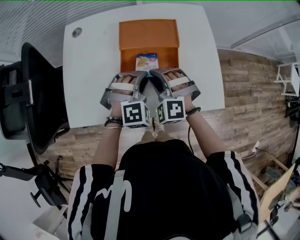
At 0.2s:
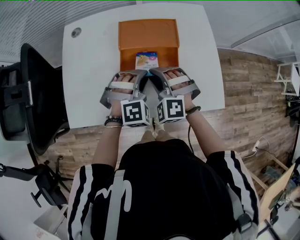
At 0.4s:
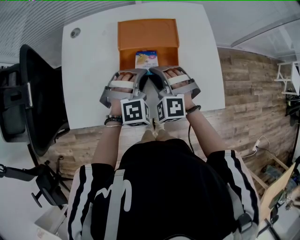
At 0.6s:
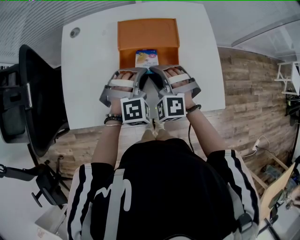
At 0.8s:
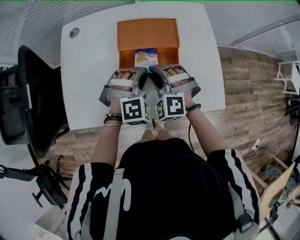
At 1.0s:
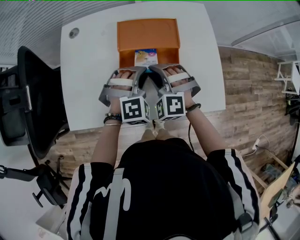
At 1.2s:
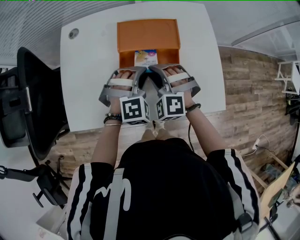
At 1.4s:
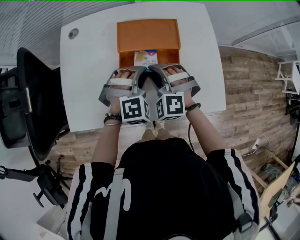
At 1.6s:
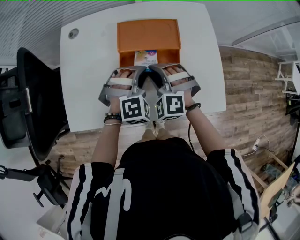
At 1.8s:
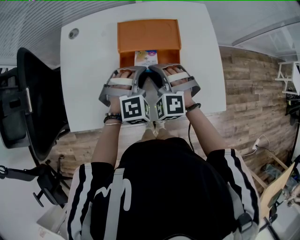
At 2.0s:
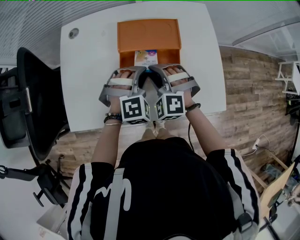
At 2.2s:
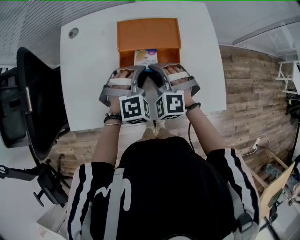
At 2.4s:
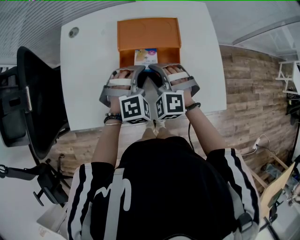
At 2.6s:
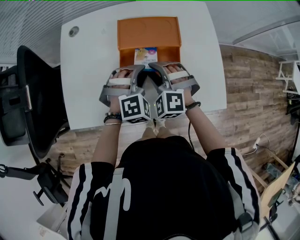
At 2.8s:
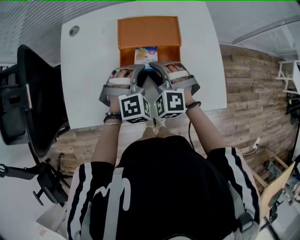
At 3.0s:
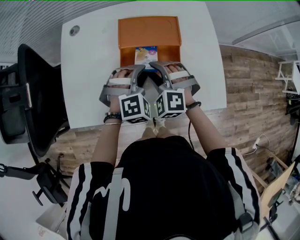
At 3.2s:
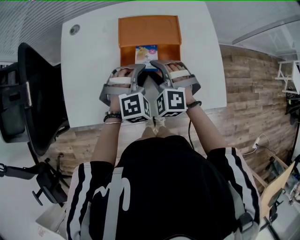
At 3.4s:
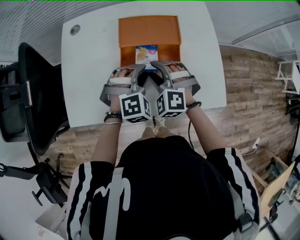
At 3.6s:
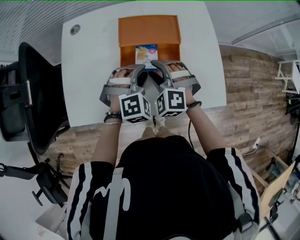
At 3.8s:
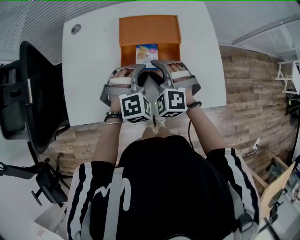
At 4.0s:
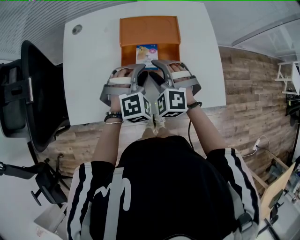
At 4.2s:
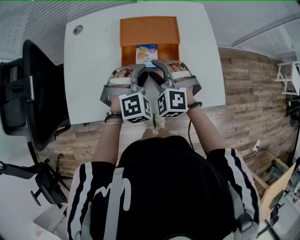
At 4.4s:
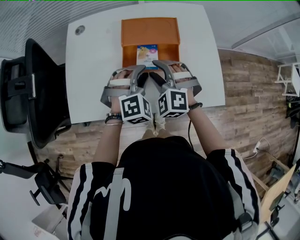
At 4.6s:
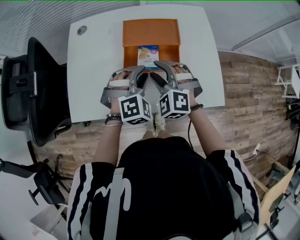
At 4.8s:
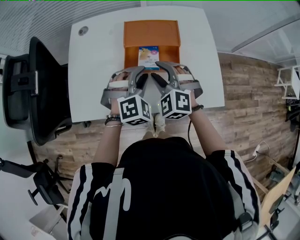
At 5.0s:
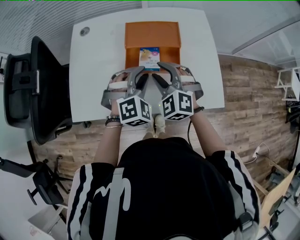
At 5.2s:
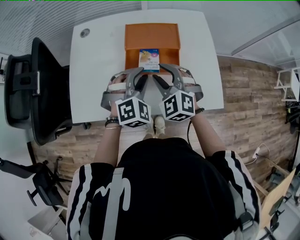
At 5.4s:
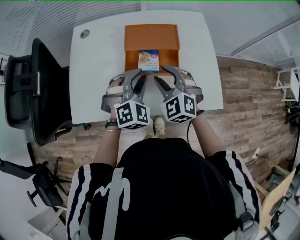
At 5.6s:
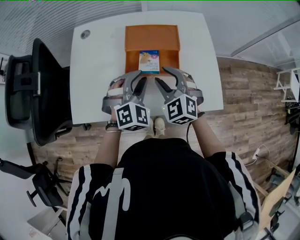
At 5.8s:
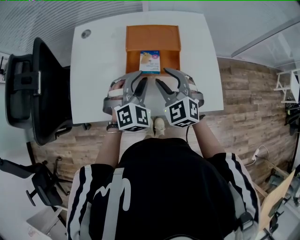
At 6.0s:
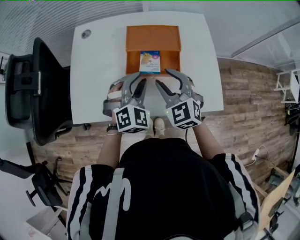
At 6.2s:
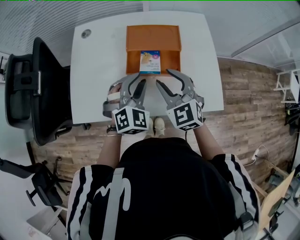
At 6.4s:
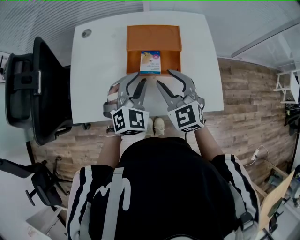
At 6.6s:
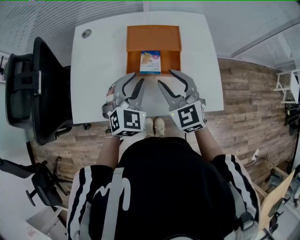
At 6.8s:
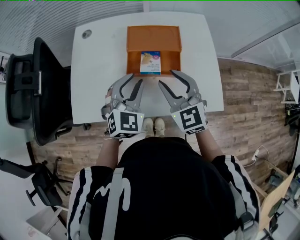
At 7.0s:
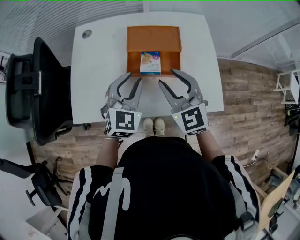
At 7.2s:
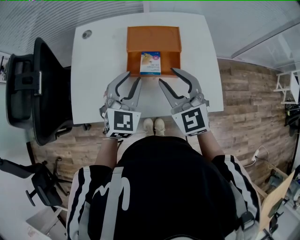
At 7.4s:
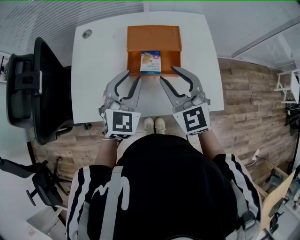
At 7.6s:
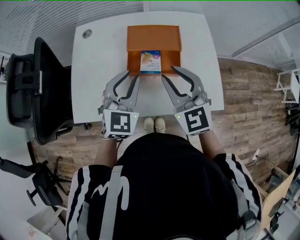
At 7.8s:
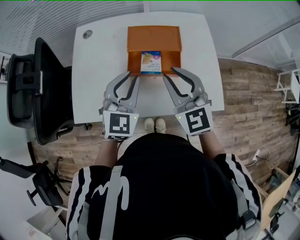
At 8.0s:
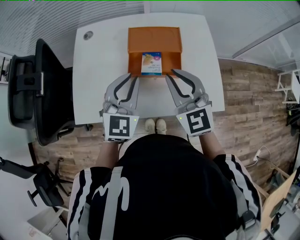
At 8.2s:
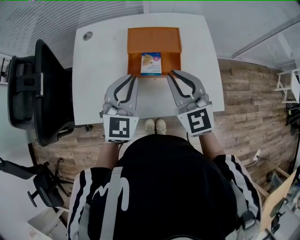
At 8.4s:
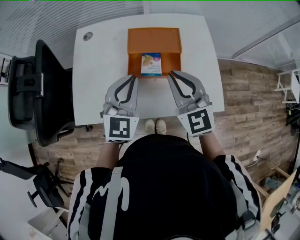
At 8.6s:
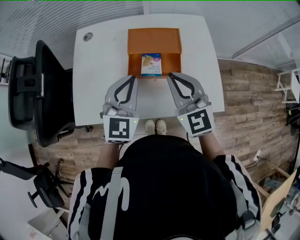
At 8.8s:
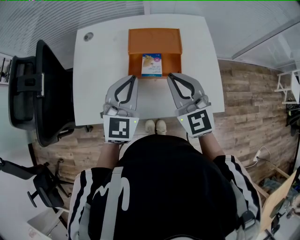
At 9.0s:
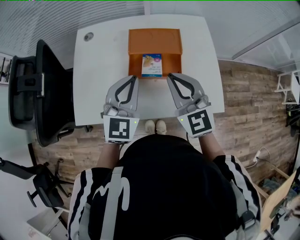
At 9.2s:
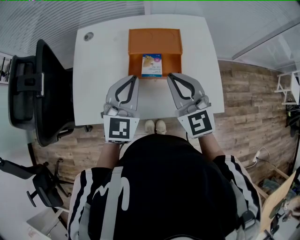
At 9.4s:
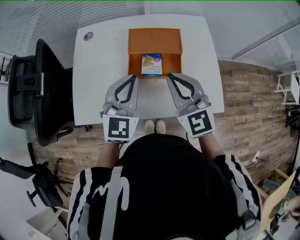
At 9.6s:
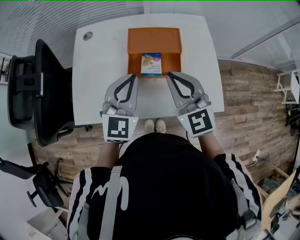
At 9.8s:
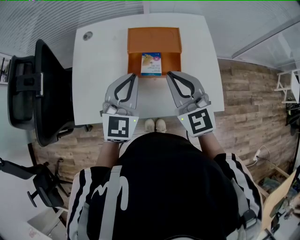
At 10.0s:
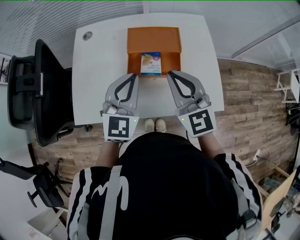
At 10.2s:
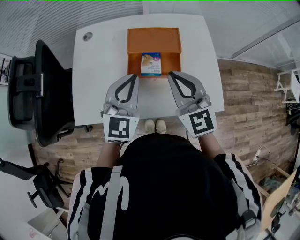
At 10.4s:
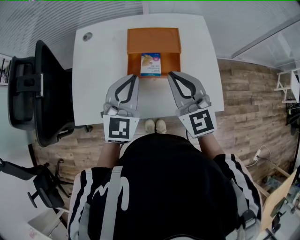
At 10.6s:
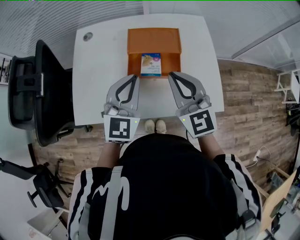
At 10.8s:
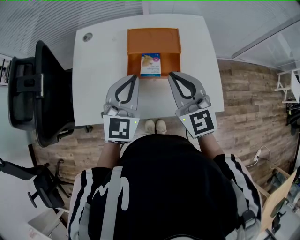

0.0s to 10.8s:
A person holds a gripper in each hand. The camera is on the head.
0.0s to 4.6s: The grippers make only small movements.
4.6s to 6.2s: The left gripper rotates about 20 degrees. Meanwhile the right gripper travels upward by roughly 5 cm, and swivels about 30 degrees.
6.2s to 7.8s: Both grippers travel together upward, about 10 cm. The right gripper closes its fingers. The left gripper swivels some 30 degrees.
7.8s to 9.2s: The right gripper closes up.
9.2s to 10.8s: The grippers move only a little.

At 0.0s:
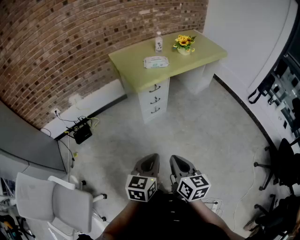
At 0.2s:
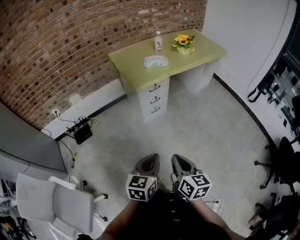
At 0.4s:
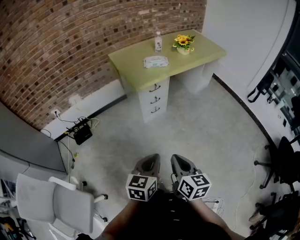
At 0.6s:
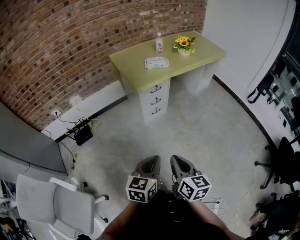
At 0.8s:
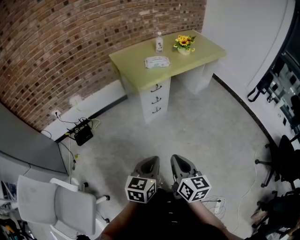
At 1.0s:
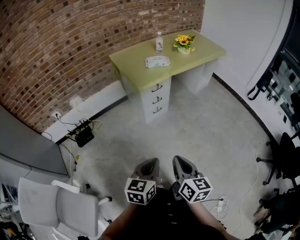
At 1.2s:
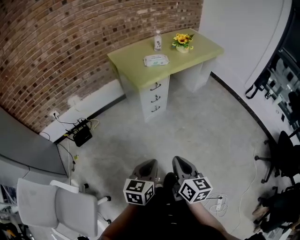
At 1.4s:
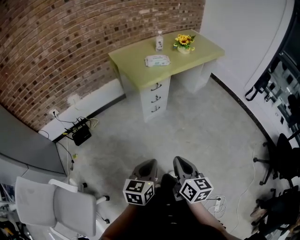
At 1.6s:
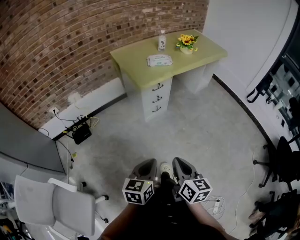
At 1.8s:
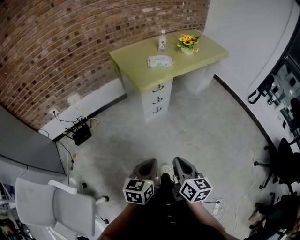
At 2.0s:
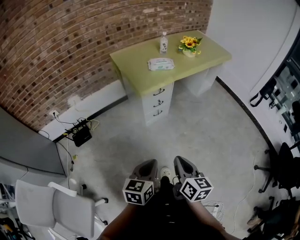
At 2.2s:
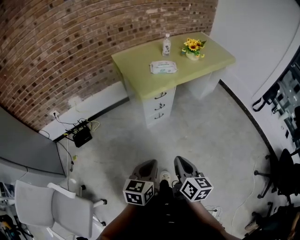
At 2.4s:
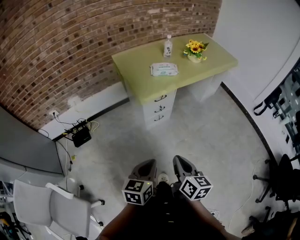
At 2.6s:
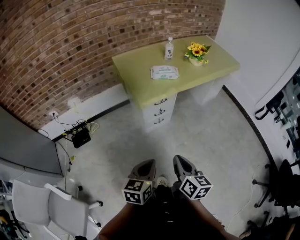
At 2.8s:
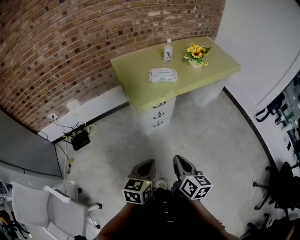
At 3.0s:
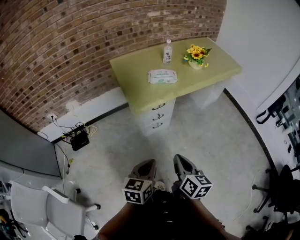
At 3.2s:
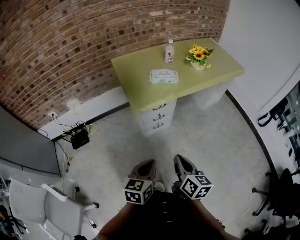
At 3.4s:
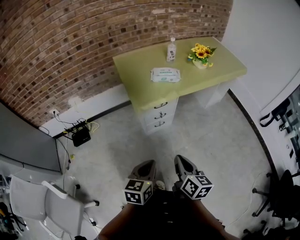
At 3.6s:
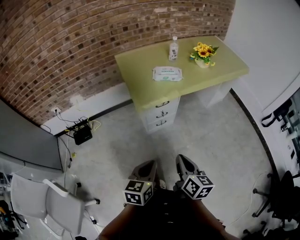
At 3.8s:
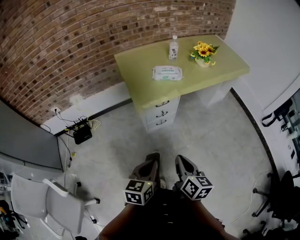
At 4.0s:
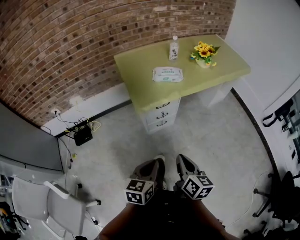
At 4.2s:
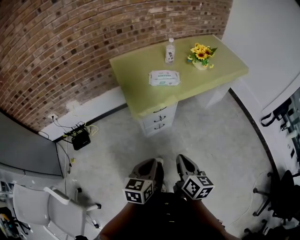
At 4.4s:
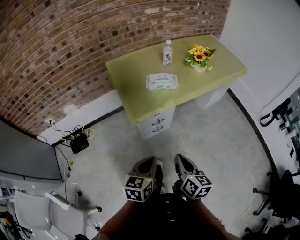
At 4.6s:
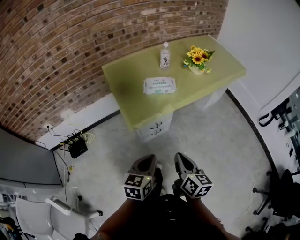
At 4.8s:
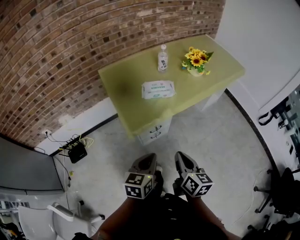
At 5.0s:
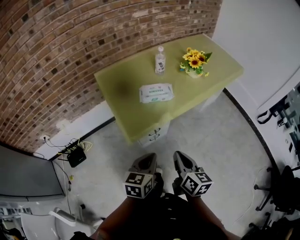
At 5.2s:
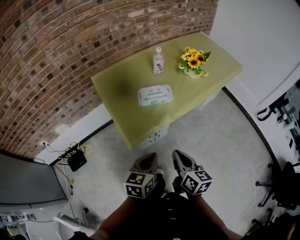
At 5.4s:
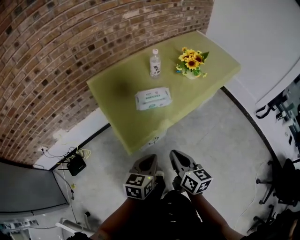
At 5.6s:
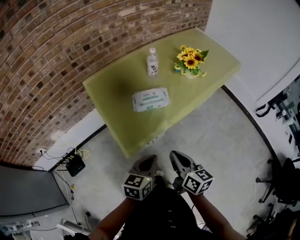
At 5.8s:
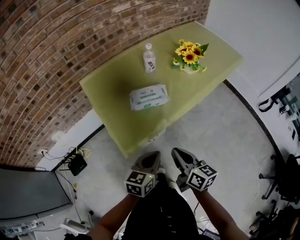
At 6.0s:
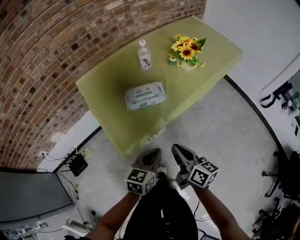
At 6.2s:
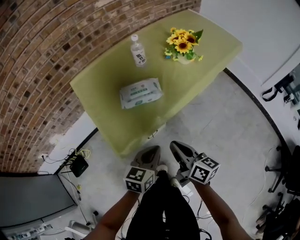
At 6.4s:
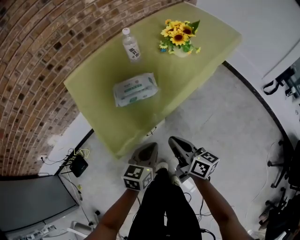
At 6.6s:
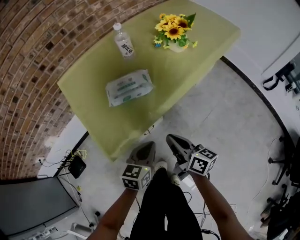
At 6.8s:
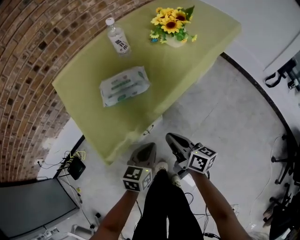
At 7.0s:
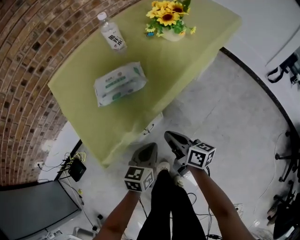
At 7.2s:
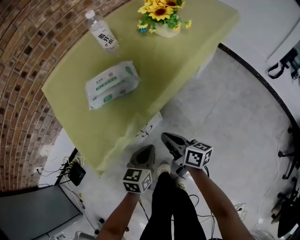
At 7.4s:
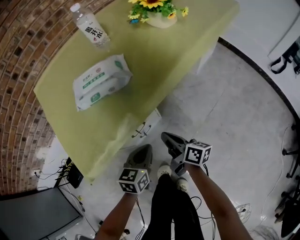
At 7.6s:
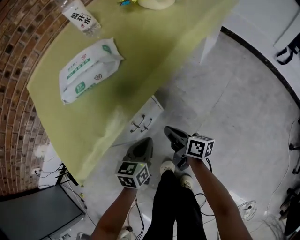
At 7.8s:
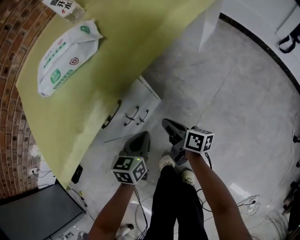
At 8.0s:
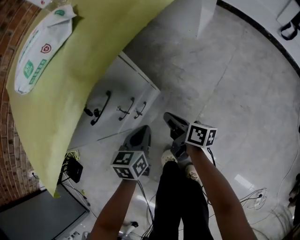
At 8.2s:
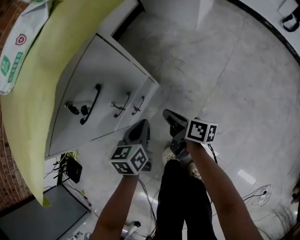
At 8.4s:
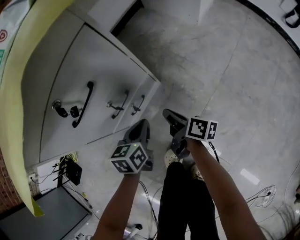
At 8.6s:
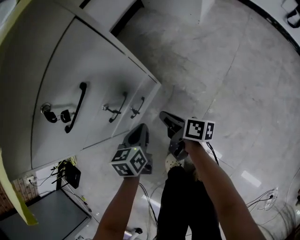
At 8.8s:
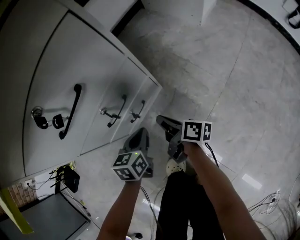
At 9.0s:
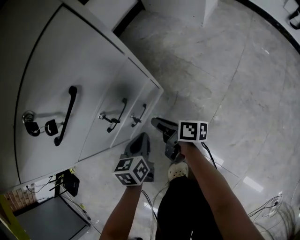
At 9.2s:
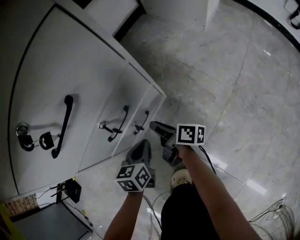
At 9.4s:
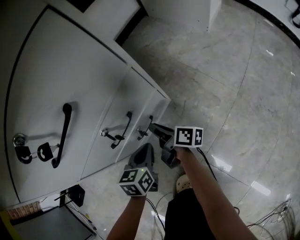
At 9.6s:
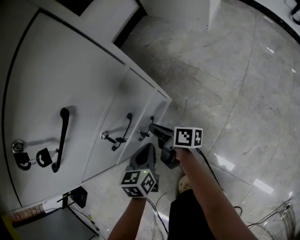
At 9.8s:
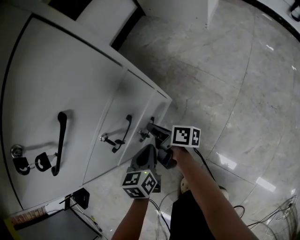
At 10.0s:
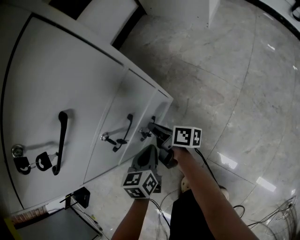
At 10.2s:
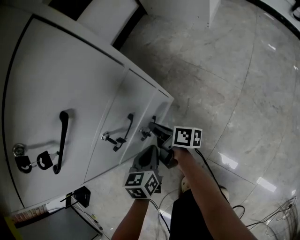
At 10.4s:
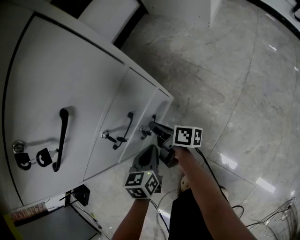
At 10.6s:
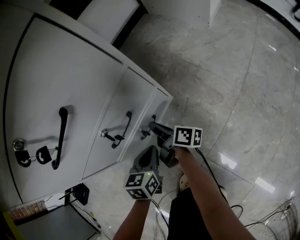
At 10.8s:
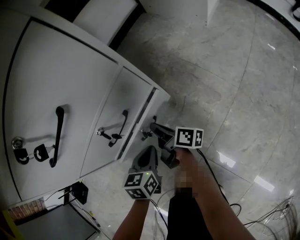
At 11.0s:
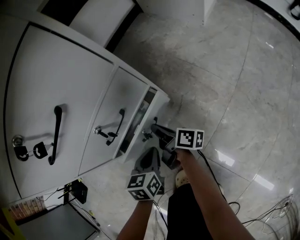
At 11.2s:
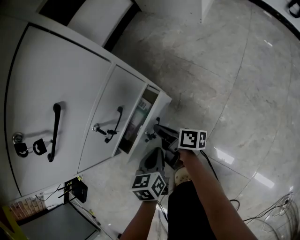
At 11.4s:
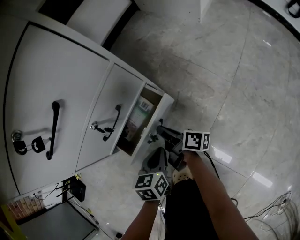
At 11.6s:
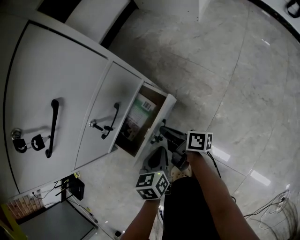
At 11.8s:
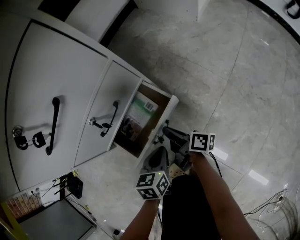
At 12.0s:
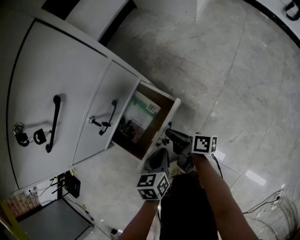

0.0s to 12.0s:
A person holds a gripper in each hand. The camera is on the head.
0.0s to 1.6s: The left gripper travels to the left by approximately 5 cm.
1.6s to 3.0s: Both grippers move forward, approximately 20 cm.
3.0s to 4.4s: The two grippers go about 10 cm forward.
4.4s to 6.0s: The two grippers go roughly 20 cm forward.
6.0s to 7.6s: Both grippers move downward, approximately 35 cm. The right gripper swivels approximately 20 degrees.
7.6s to 9.0s: Both grippers travel together downward, about 30 cm.
9.0s to 10.4s: The right gripper travels forward by about 5 cm.
10.4s to 12.0s: Both grippers move backward and to the right, roughly 15 cm.

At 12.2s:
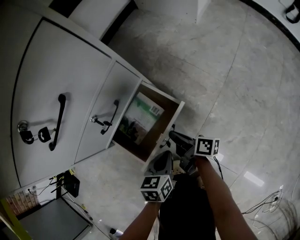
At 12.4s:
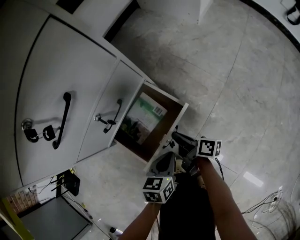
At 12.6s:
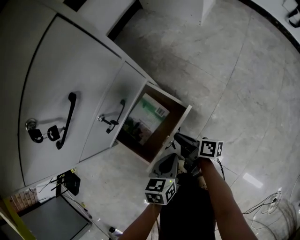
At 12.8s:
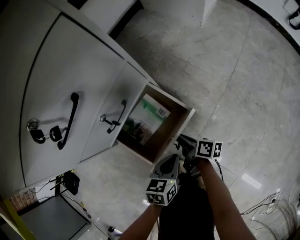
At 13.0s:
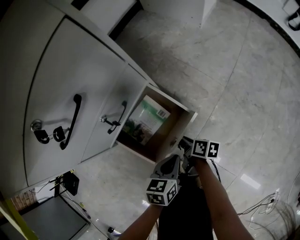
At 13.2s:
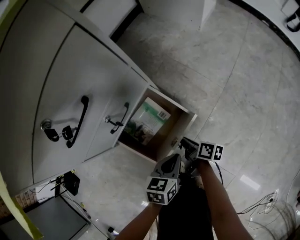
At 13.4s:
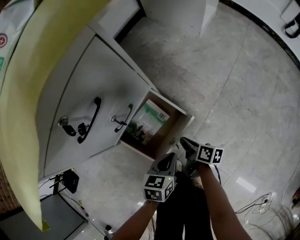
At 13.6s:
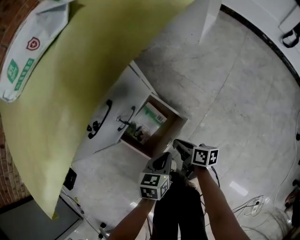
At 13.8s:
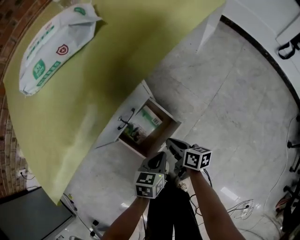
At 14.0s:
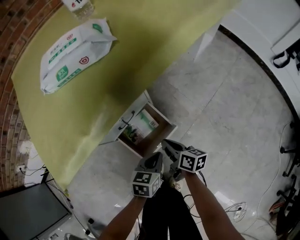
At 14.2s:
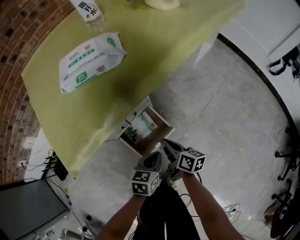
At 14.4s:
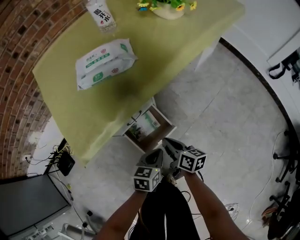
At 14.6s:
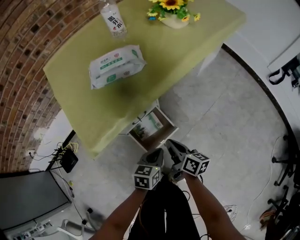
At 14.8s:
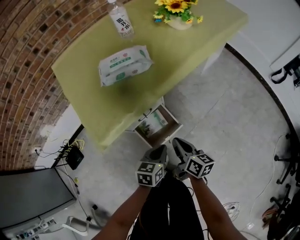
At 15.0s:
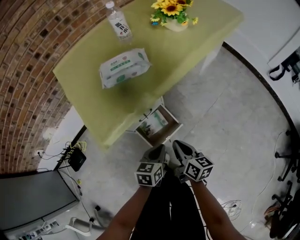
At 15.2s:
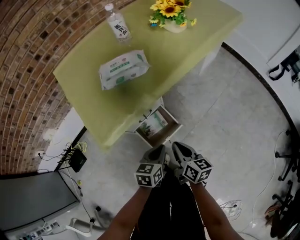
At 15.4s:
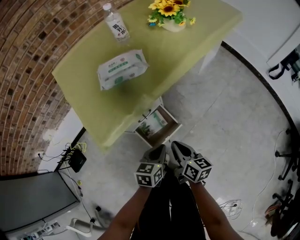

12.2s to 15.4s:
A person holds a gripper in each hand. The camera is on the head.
12.2s to 13.8s: Both grippers move upward, some 15 cm. The right gripper rotates approximately 30 degrees.
13.8s to 15.4s: Both grippers travel together upward, roughly 25 cm.
